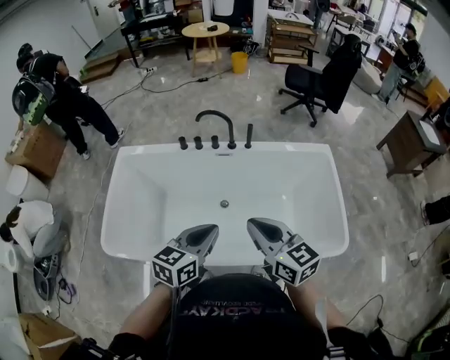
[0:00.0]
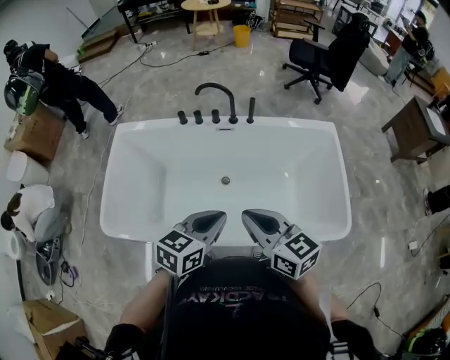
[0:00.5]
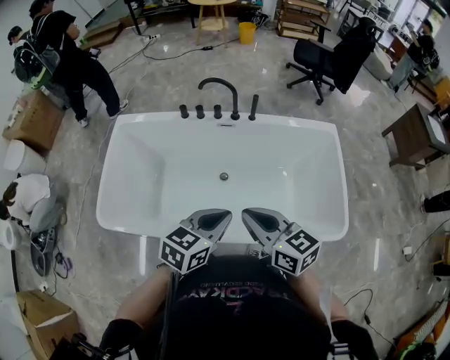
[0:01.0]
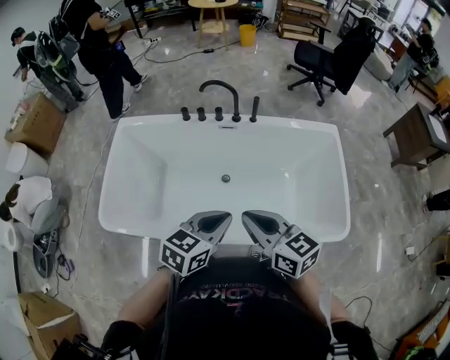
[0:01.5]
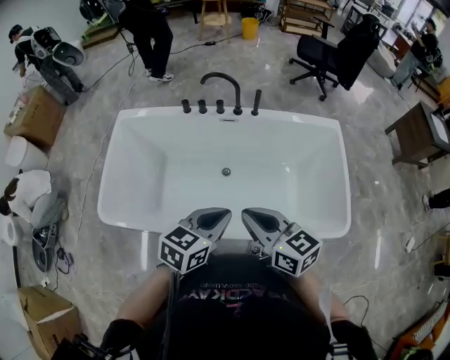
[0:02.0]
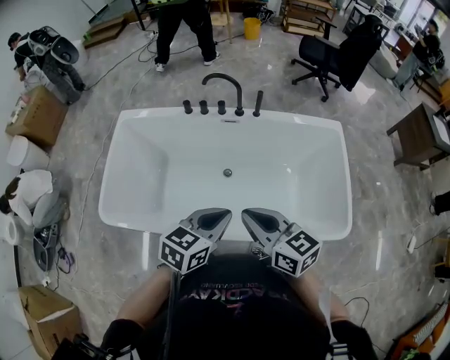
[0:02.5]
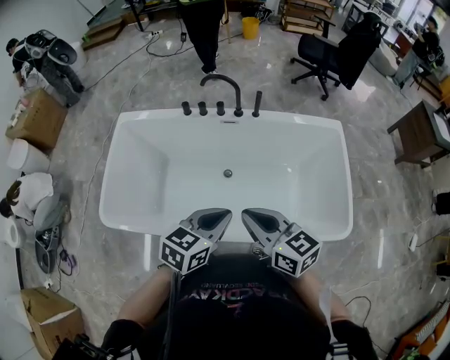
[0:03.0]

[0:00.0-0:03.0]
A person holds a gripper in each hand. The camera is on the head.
0:00.0 to 0:01.5: The grippers make only small movements.
0:01.5 to 0:03.0: Neither gripper changes place.

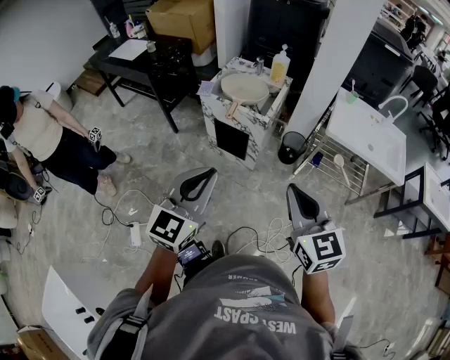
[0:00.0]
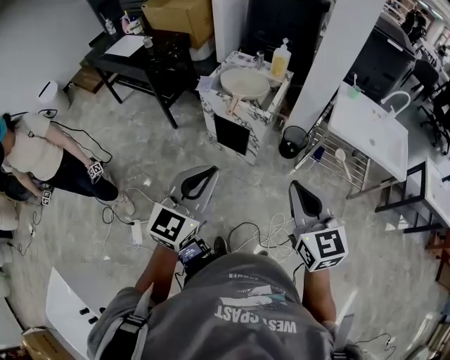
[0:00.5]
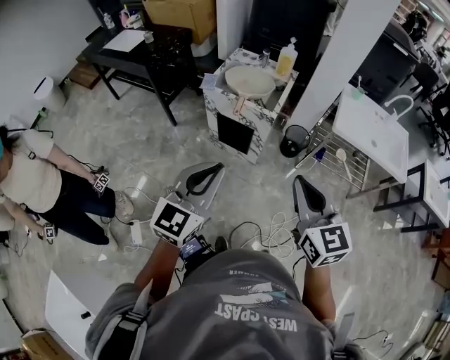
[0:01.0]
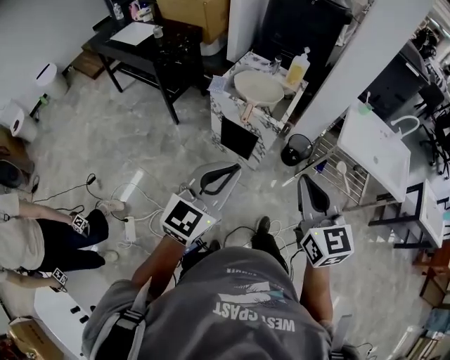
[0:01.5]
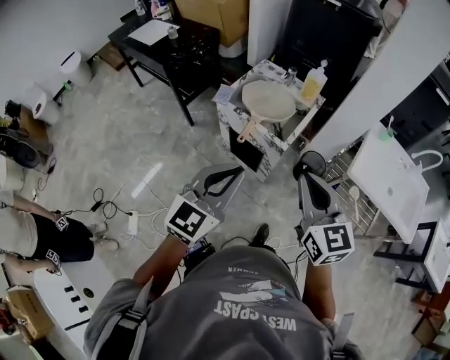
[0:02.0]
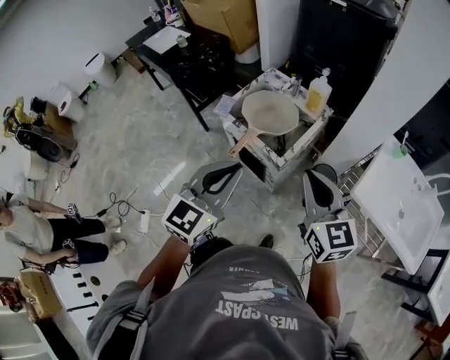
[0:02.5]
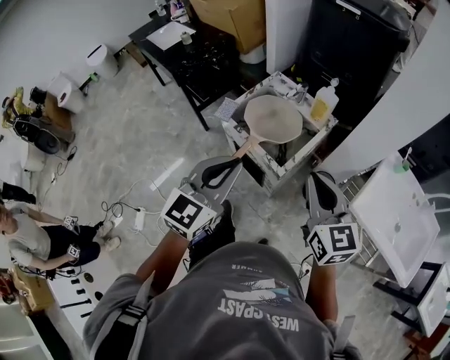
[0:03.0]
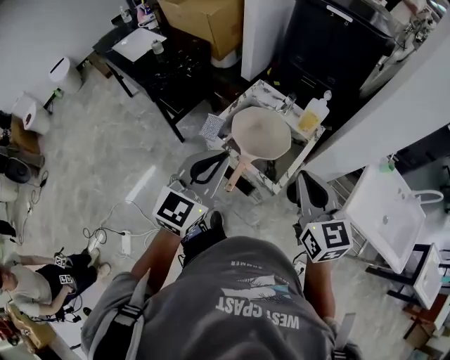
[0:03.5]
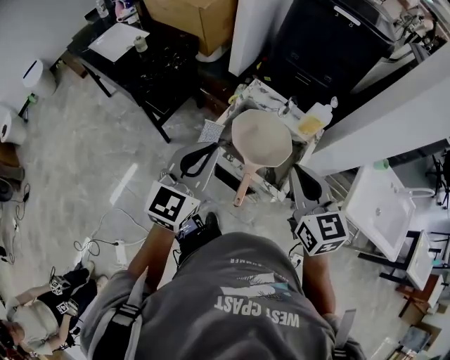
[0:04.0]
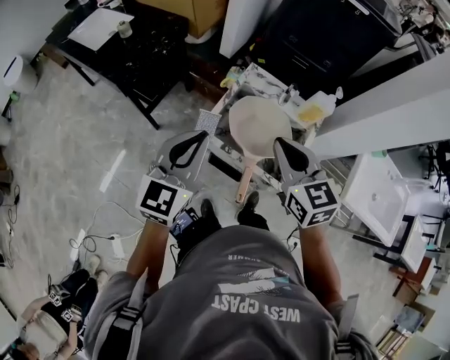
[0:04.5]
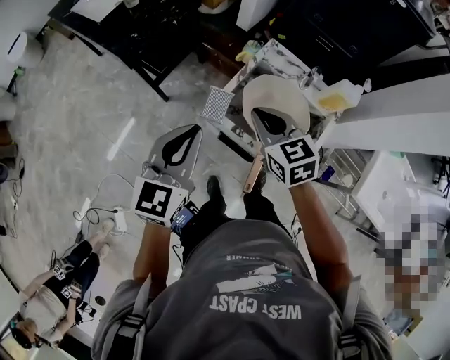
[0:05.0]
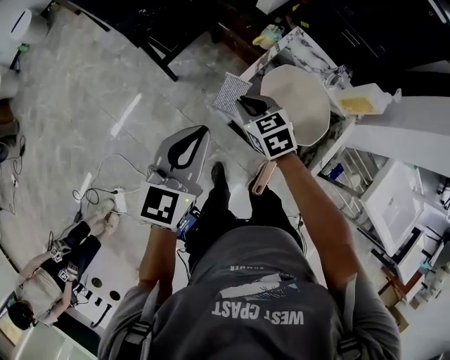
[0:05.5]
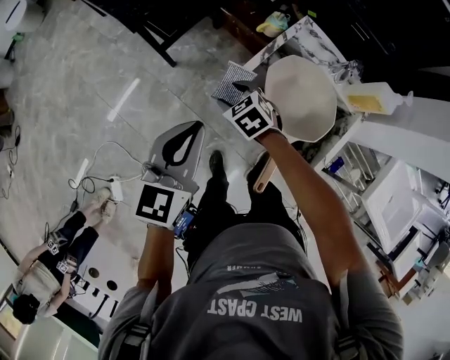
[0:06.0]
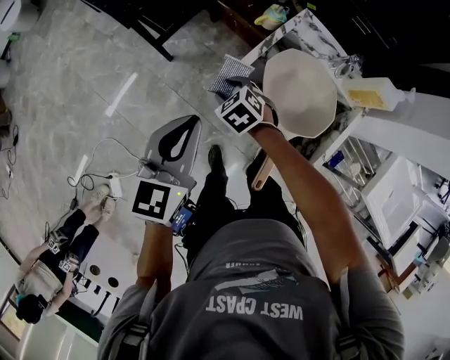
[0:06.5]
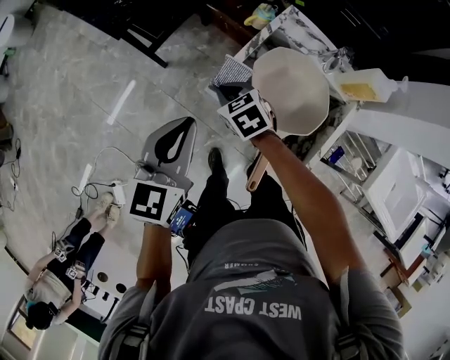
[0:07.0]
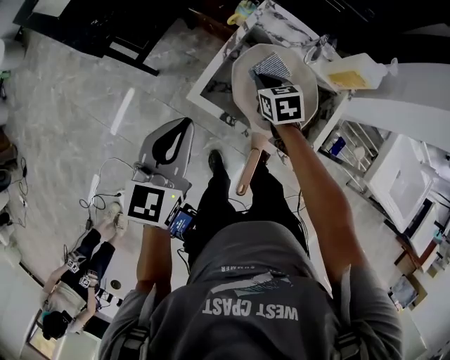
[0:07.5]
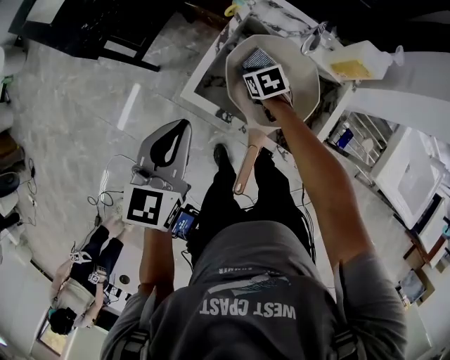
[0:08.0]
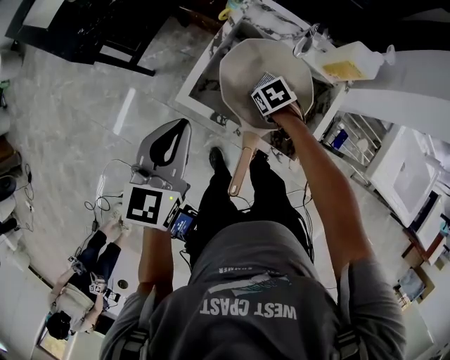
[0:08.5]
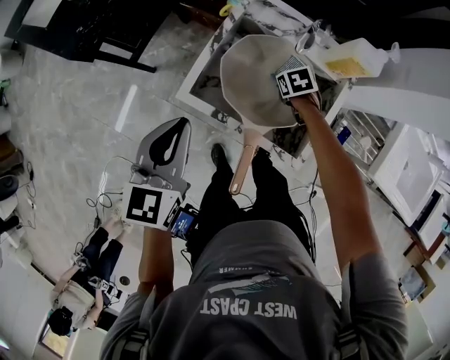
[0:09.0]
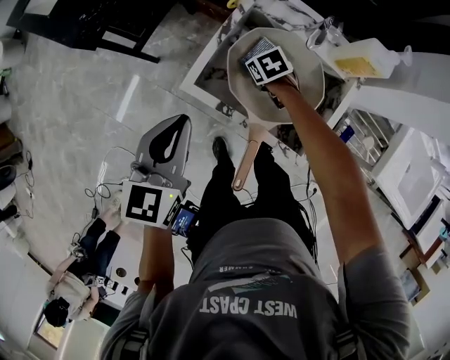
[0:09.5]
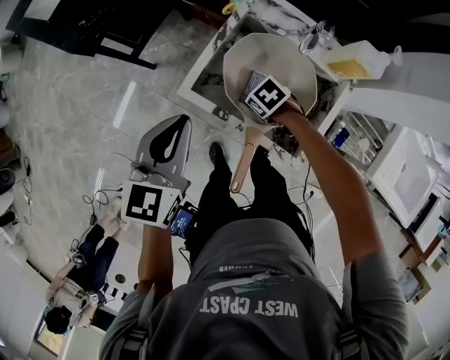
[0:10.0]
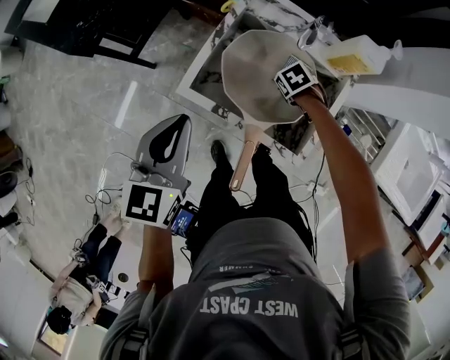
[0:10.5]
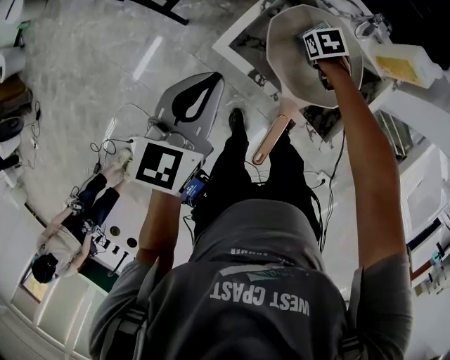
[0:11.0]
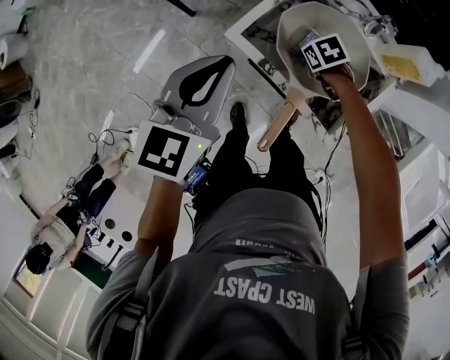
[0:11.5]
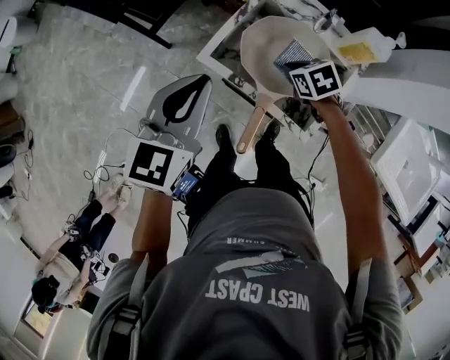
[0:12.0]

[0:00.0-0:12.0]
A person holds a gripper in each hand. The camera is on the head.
0:00.0 to 0:02.0: Both grippers move forward, some 25 cm.
0:02.0 to 0:04.0: The right gripper shifts roughly 30 cm forward, while the left gripper heads forward and to the left, covering some 35 cm.
0:04.0 to 0:06.0: The right gripper moves downward, to the left and forward, roughly 50 cm, points its fingers approximately 40 degrees further downward, and opens up. The left gripper heads downward, to the left and forward, covering approximately 20 cm, and changes its angle by roughly 20 degrees.
0:06.0 to 0:08.0: The right gripper goes some 20 cm to the right and downward, rotates approximately 30 degrees, and closes up; the left gripper heads to the right, covering roughly 10 cm.
0:08.0 to 0:10.0: The right gripper ends up approximately 10 cm from where it was, and changes its angle by approximately 30 degrees.
0:10.0 to 0:12.0: The right gripper goes about 10 cm upward; the left gripper heads upward, covering roughly 5 cm.

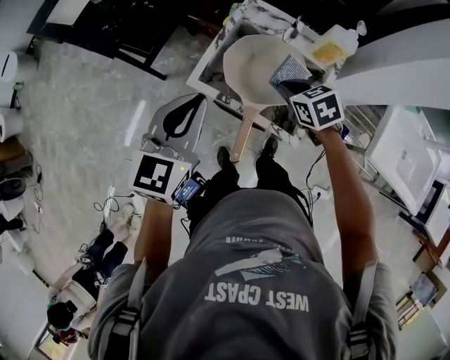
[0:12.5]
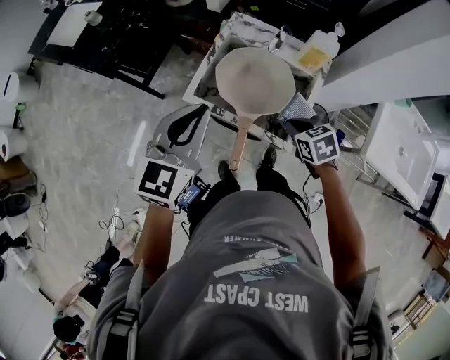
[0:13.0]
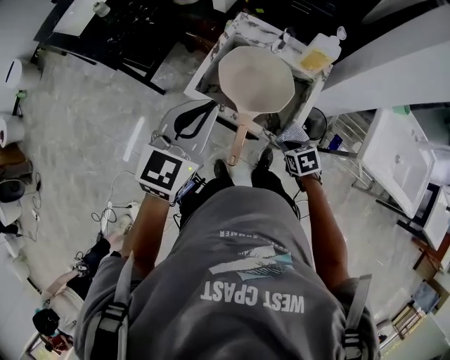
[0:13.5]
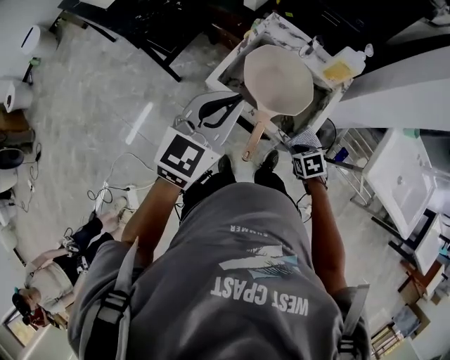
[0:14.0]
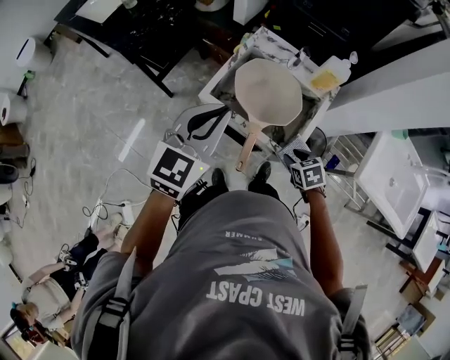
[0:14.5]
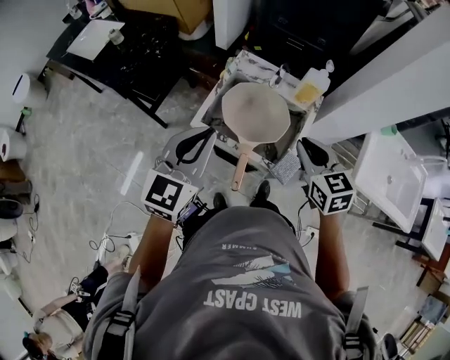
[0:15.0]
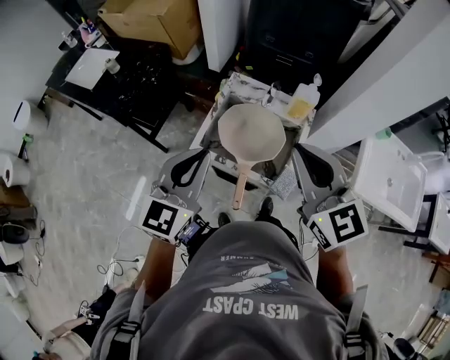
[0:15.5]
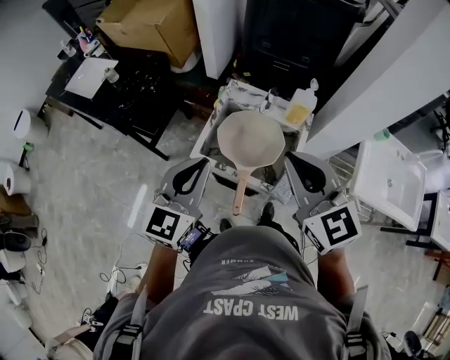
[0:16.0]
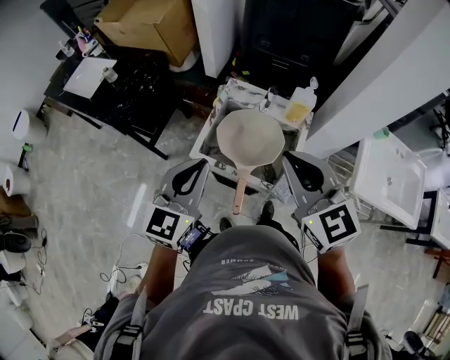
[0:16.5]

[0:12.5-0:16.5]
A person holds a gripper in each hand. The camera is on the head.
0:12.5 to 0:14.5: The right gripper shifts approximately 20 cm backward and downward, and opens its fingers. The left gripper moves roughly 5 cm.
0:14.5 to 0:16.5: The right gripper travels upward by some 40 cm, tips its fingers upward by some 50 degrees, and closes up.

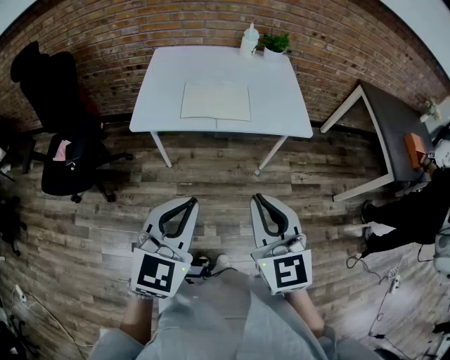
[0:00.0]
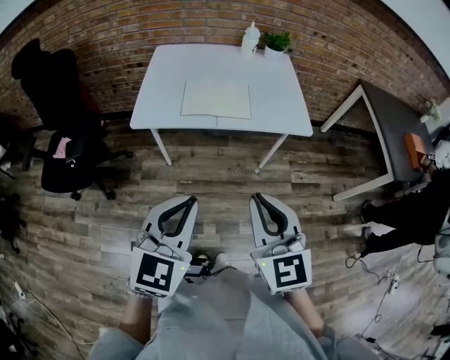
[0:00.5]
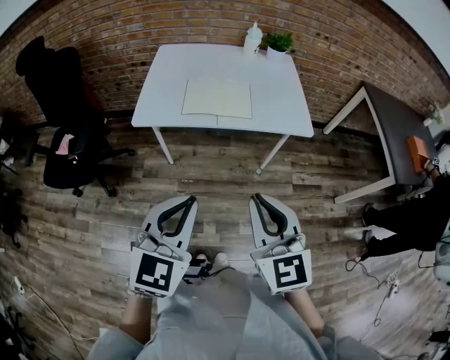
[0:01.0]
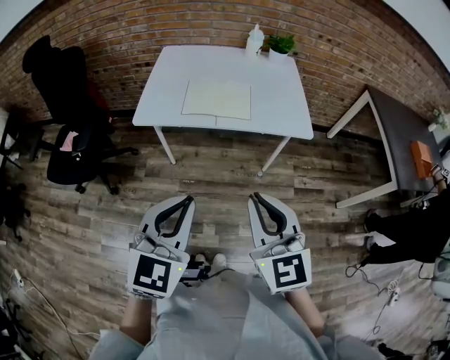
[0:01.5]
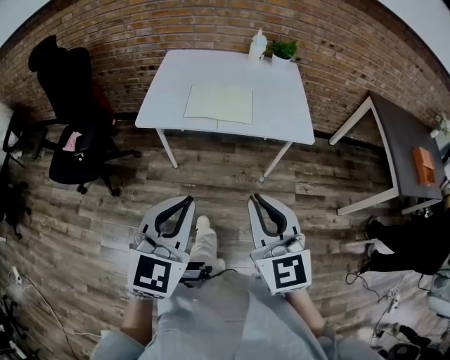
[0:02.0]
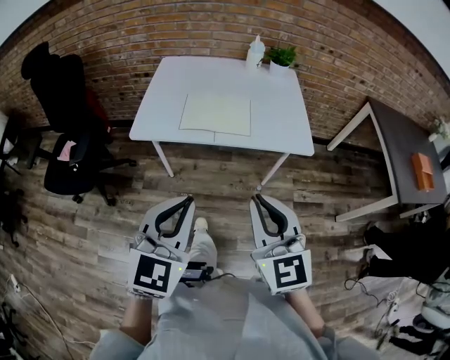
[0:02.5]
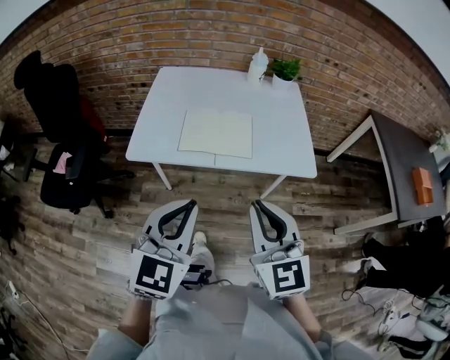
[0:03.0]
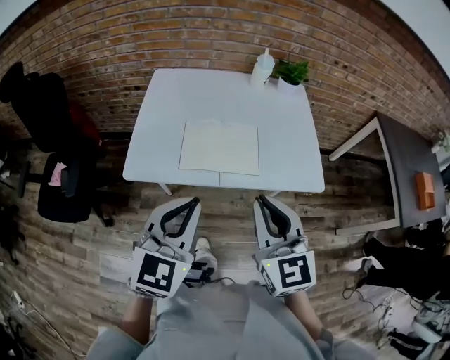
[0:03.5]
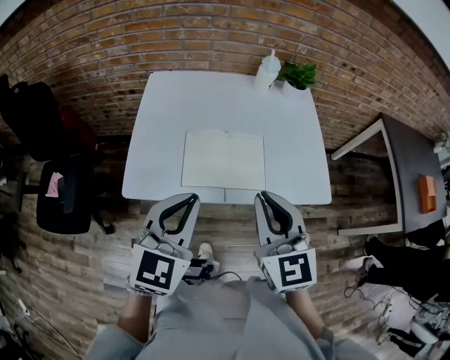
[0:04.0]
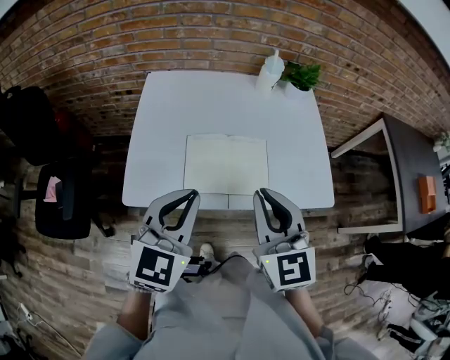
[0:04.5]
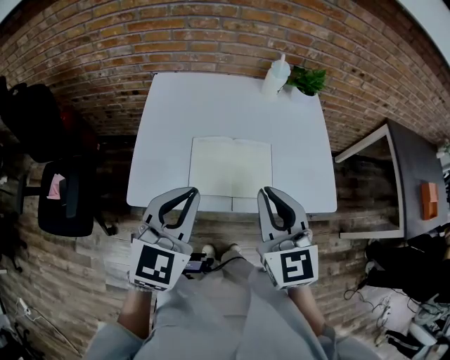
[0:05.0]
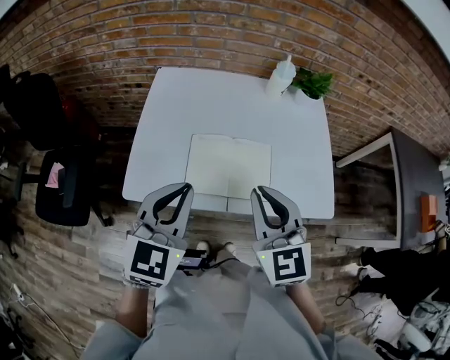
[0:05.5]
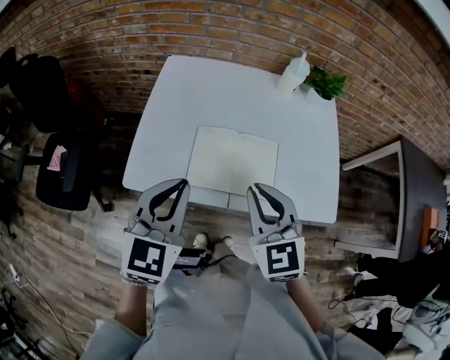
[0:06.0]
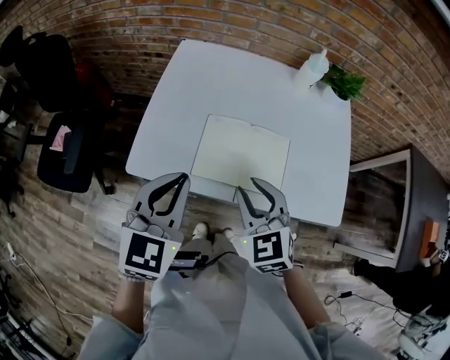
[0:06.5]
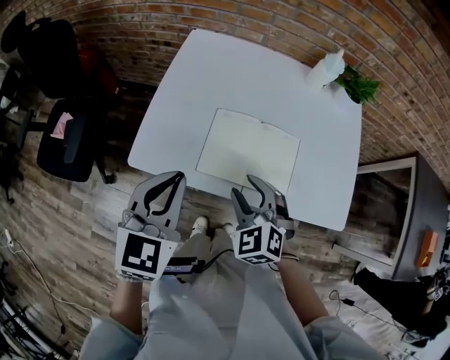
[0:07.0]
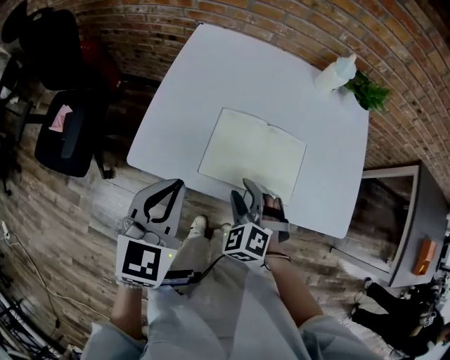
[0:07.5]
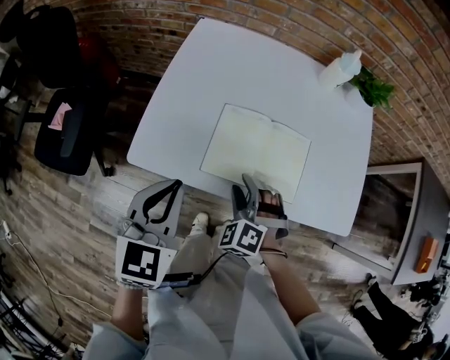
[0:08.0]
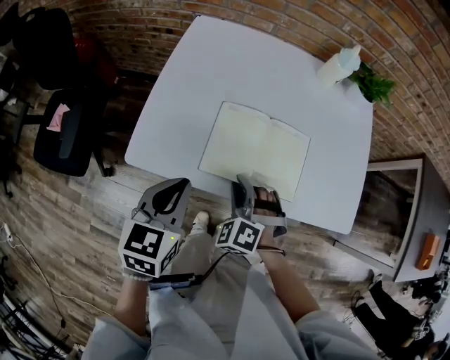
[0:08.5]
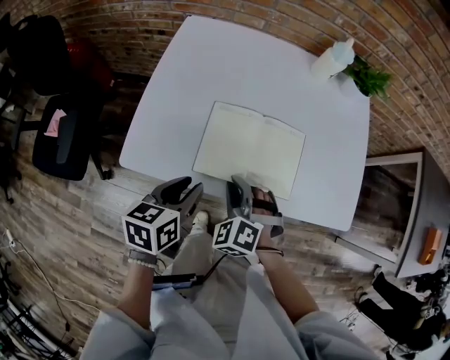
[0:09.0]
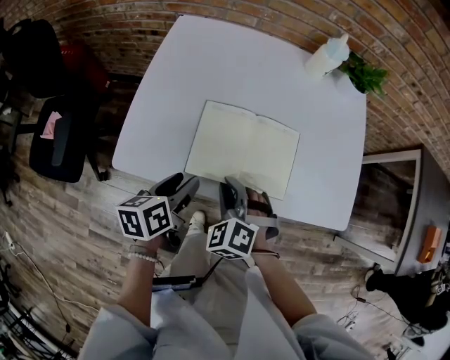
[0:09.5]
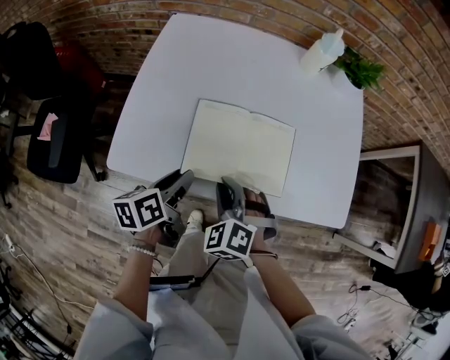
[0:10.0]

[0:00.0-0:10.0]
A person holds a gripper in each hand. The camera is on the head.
0:00.0 to 0:02.0: The grippers move only a little.
0:02.0 to 0:04.0: The grippers both shift forward by about 35 cm.
0:04.0 to 0:06.0: The grippers both shift forward by some 5 cm.
0:06.0 to 0:08.0: The left gripper travels downward and to the left by roughly 10 cm. Meanwhile the right gripper moves downward, about 20 cm, twists roughly 40 degrees counterclockwise, seen from behind, and opens its fingers.
0:08.0 to 0:10.0: The left gripper moves downward, some 15 cm, rolls counterclockwise, seen from behind, by roughly 50 degrees, and opens; the right gripper closes.
